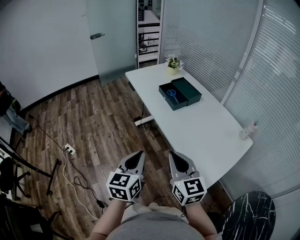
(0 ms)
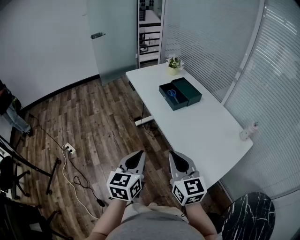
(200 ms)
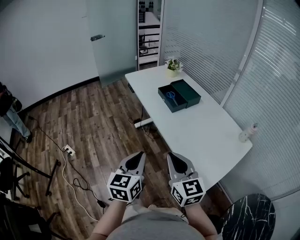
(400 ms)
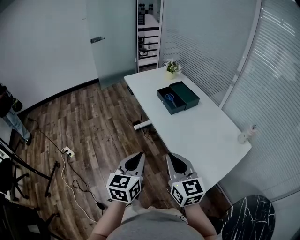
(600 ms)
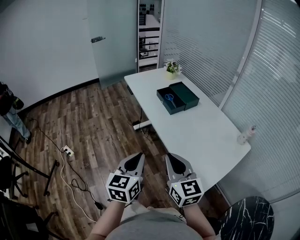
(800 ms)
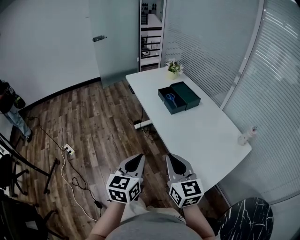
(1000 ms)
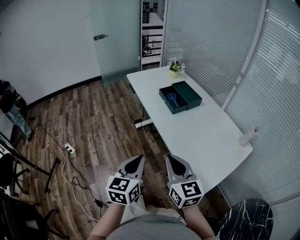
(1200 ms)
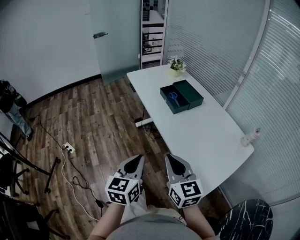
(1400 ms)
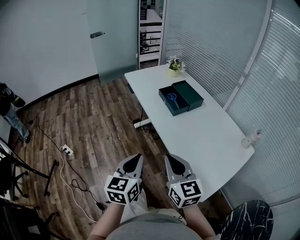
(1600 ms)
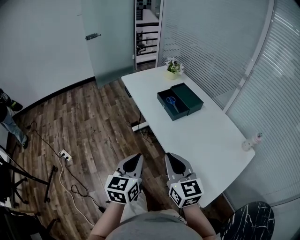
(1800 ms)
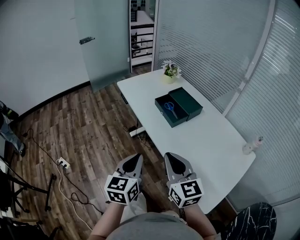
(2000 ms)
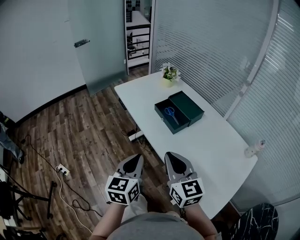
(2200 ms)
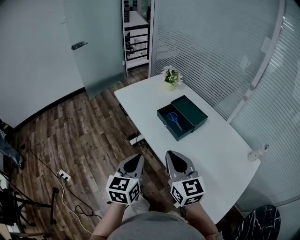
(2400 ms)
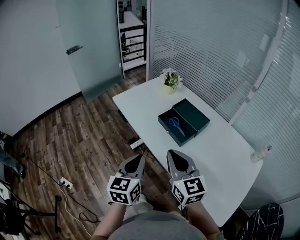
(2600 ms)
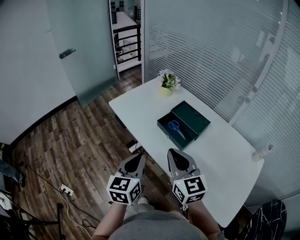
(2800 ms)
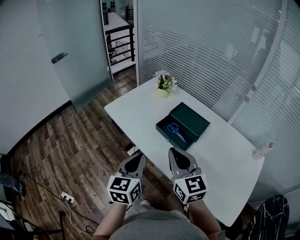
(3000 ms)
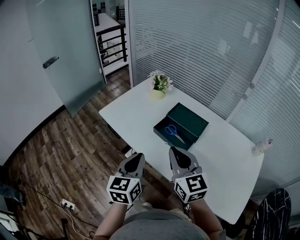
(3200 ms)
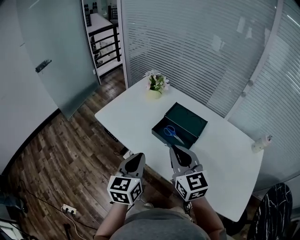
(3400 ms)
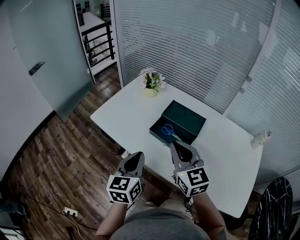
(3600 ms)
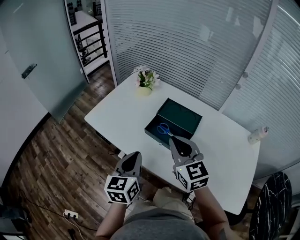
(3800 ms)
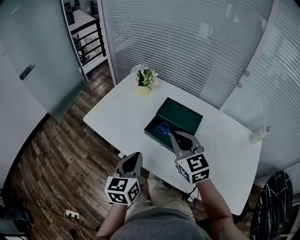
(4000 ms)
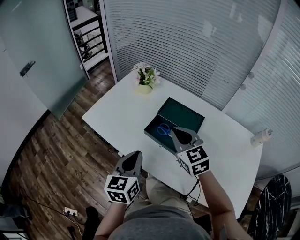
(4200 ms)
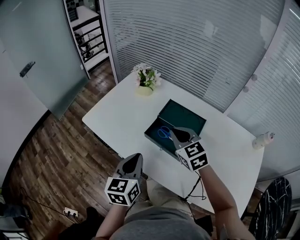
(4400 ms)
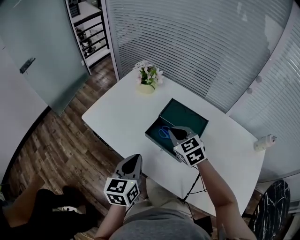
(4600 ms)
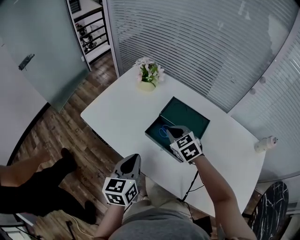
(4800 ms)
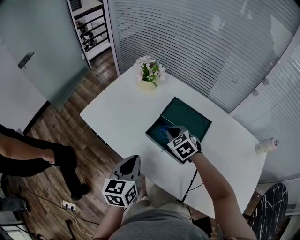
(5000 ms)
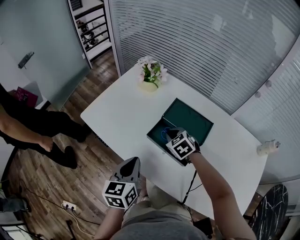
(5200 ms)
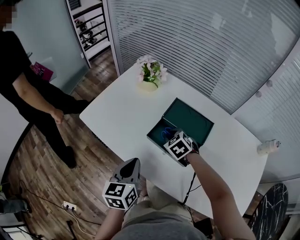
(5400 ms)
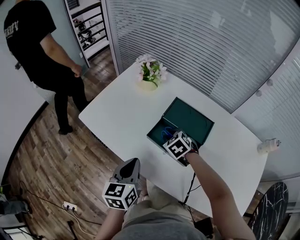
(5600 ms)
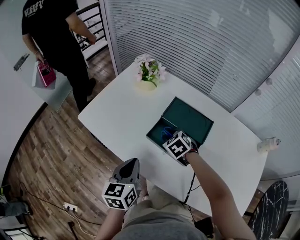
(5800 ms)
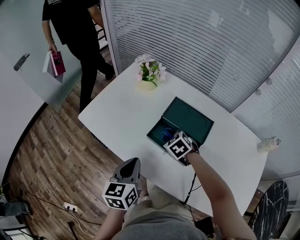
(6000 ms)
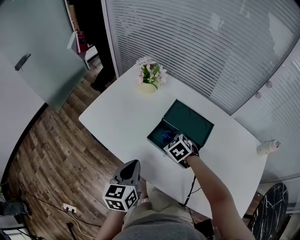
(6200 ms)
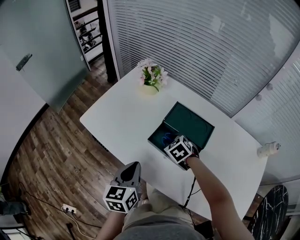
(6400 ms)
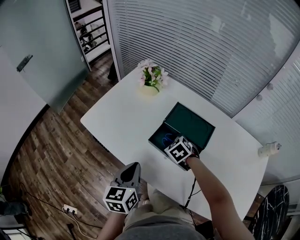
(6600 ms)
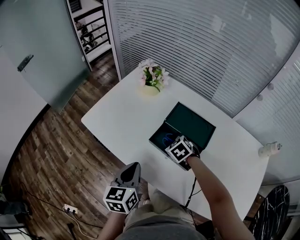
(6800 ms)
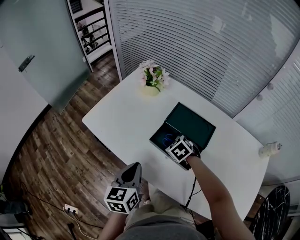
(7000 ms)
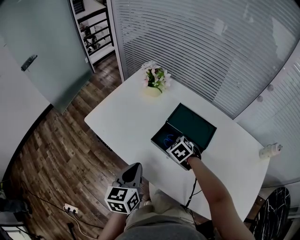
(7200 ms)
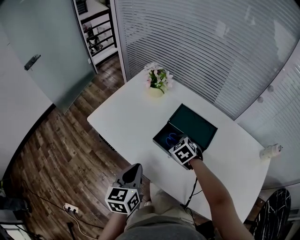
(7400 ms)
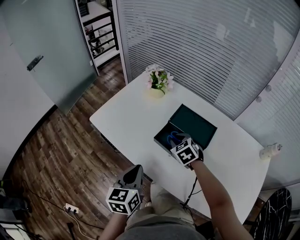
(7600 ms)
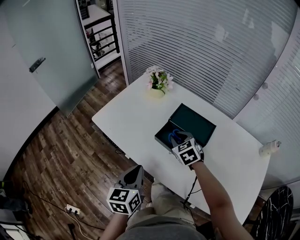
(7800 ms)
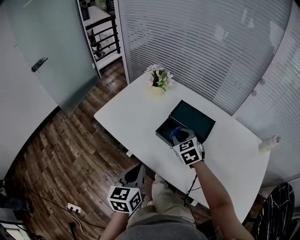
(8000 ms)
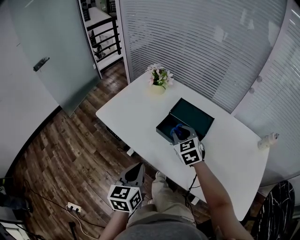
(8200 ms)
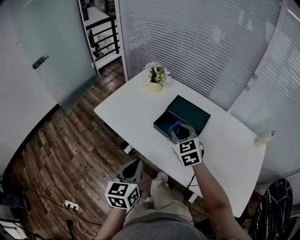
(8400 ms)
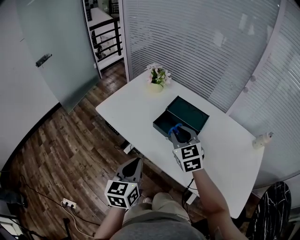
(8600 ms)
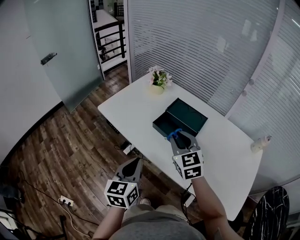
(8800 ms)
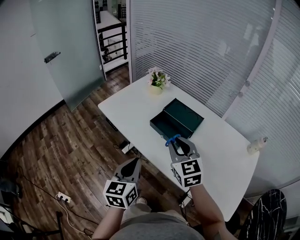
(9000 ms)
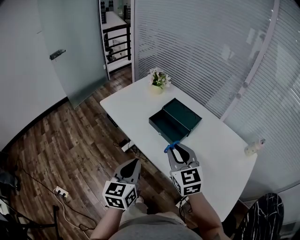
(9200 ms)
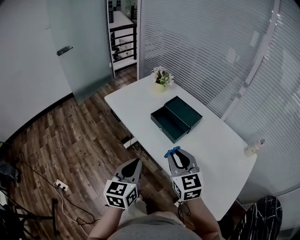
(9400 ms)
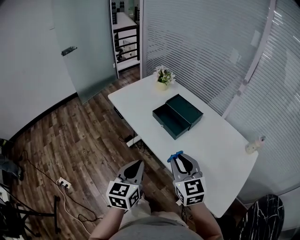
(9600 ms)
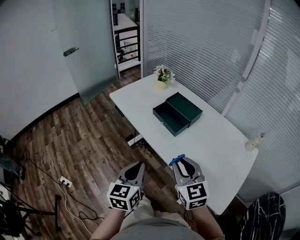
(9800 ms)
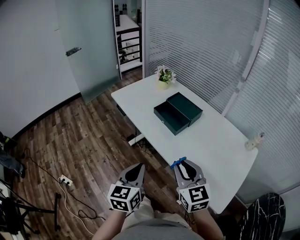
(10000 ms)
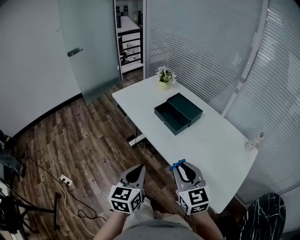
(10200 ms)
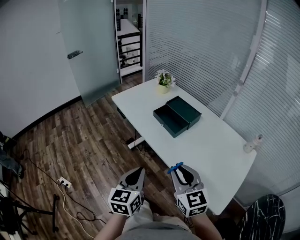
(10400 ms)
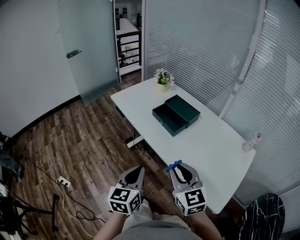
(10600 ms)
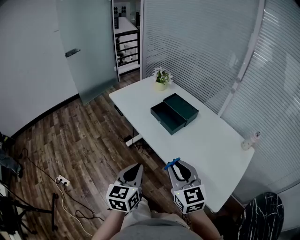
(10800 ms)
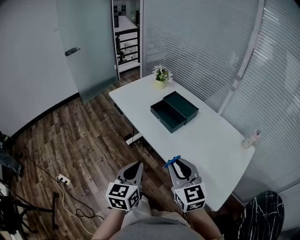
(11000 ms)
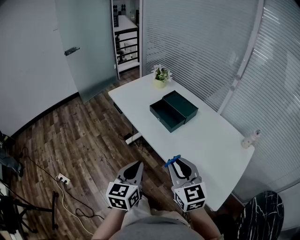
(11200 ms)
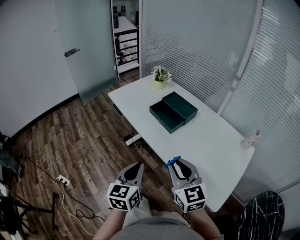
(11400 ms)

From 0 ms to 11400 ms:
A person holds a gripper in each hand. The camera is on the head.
From 0 ms to 1400 ms: The grippers stay close to where they were, moving slightly.
From 1400 ms to 2800 ms: Both grippers travel together forward, approximately 35 cm.
From 2800 ms to 4200 ms: The grippers both shift forward by approximately 20 cm. The right gripper swivels some 20 degrees.
From 4200 ms to 5600 ms: The left gripper moves downward, about 5 cm; the right gripper is displaced downward and forward by about 25 cm, angles its fingers downward, by some 40 degrees, and opens up.
From 5600 ms to 7200 ms: The grippers stay close to where they were, moving slightly.
From 7200 ms to 8600 ms: The left gripper heads backward and upward, covering some 15 cm. The right gripper goes about 25 cm upward and backward, and points its fingers approximately 40 degrees further upward.
From 8600 ms to 10000 ms: The two grippers go roughly 30 cm backward.
From 10000 ms to 11400 ms: The grippers make only small movements.

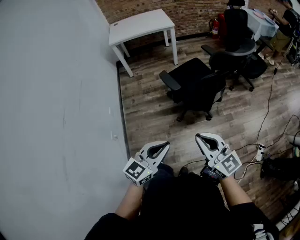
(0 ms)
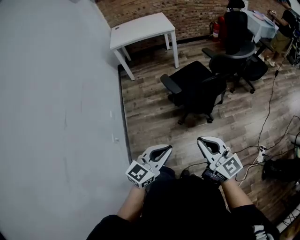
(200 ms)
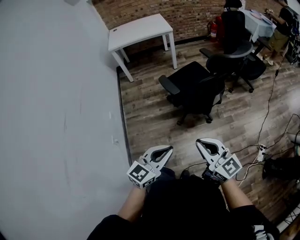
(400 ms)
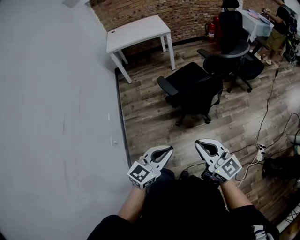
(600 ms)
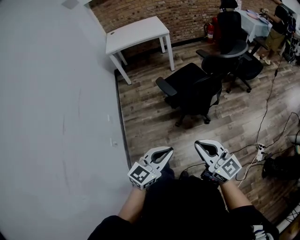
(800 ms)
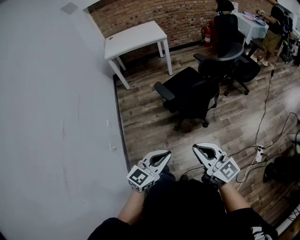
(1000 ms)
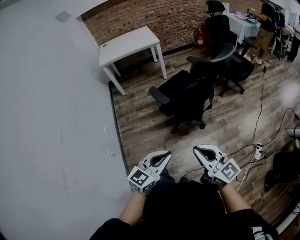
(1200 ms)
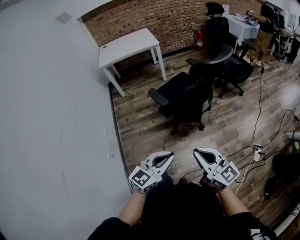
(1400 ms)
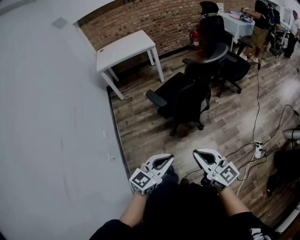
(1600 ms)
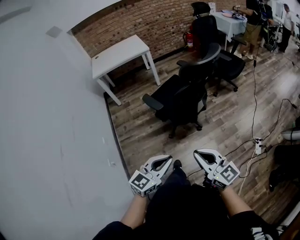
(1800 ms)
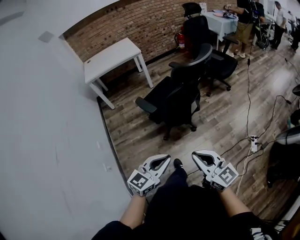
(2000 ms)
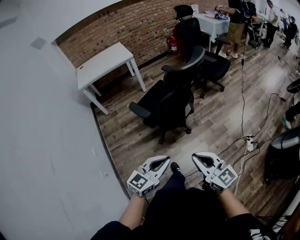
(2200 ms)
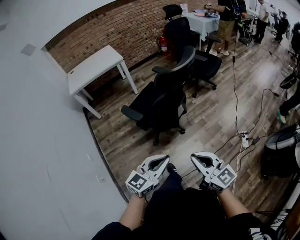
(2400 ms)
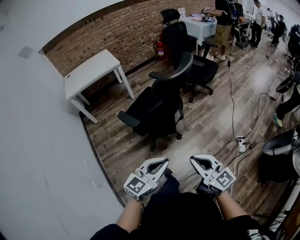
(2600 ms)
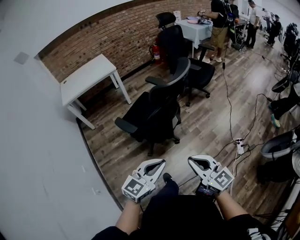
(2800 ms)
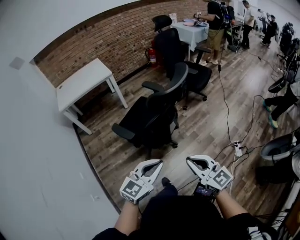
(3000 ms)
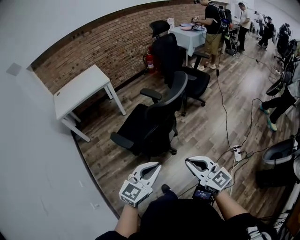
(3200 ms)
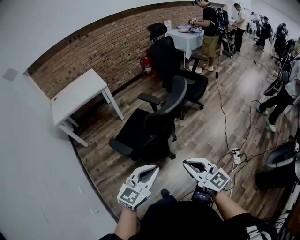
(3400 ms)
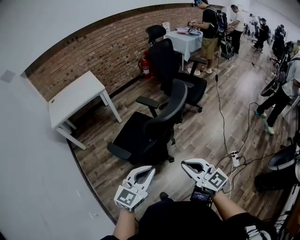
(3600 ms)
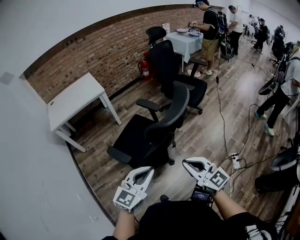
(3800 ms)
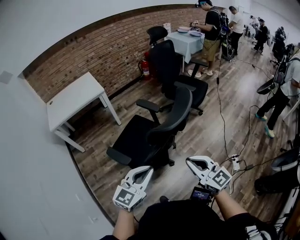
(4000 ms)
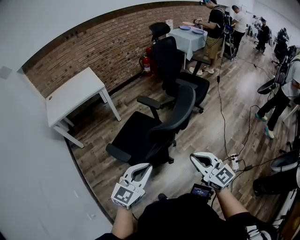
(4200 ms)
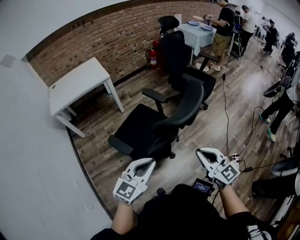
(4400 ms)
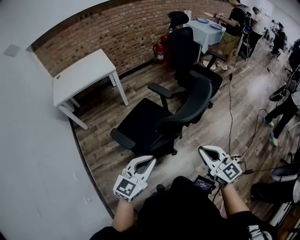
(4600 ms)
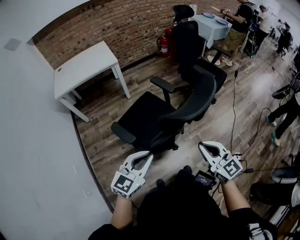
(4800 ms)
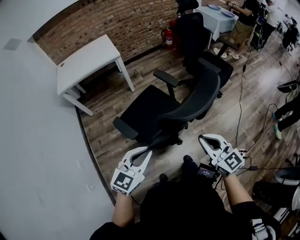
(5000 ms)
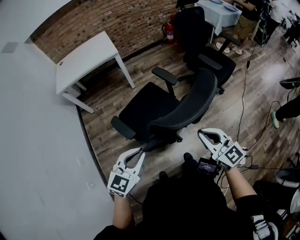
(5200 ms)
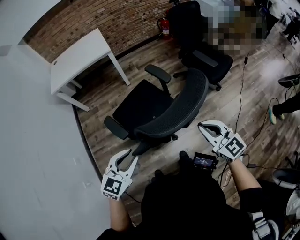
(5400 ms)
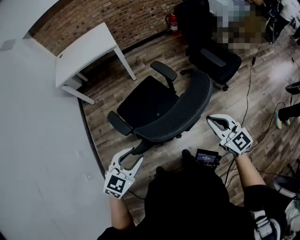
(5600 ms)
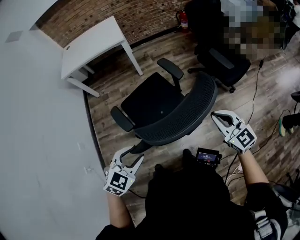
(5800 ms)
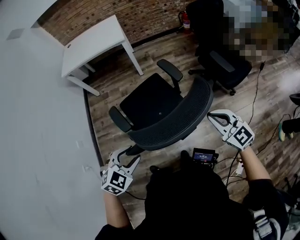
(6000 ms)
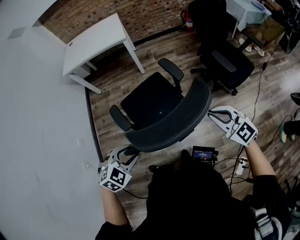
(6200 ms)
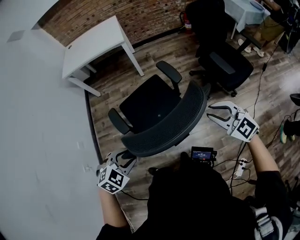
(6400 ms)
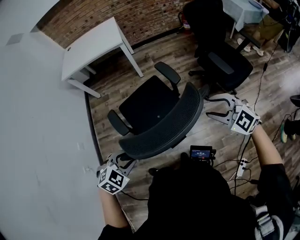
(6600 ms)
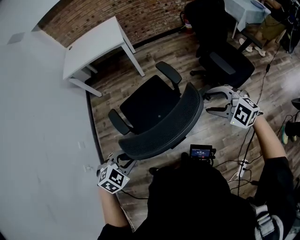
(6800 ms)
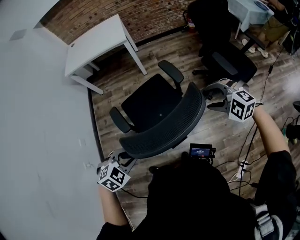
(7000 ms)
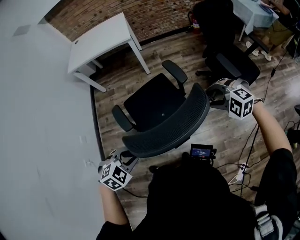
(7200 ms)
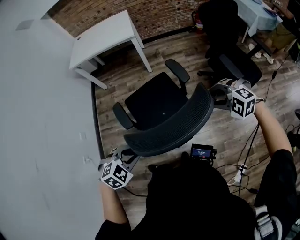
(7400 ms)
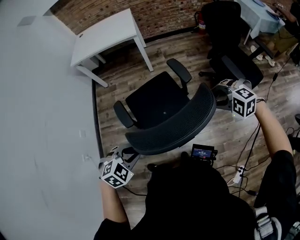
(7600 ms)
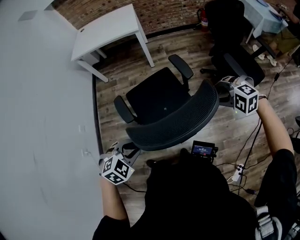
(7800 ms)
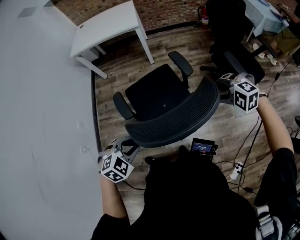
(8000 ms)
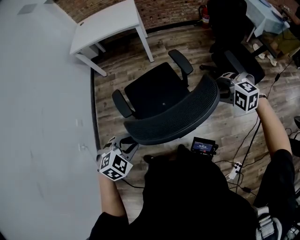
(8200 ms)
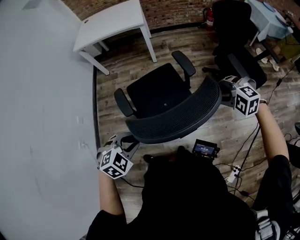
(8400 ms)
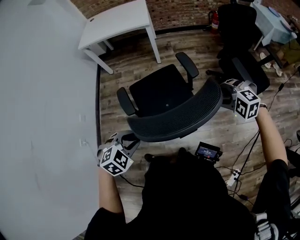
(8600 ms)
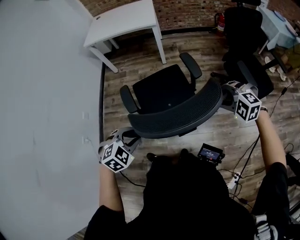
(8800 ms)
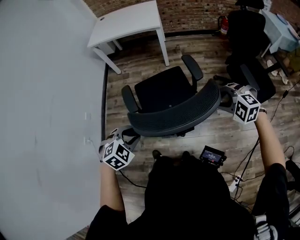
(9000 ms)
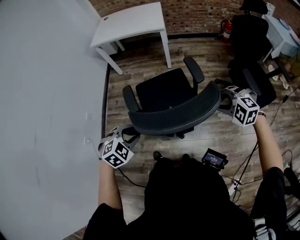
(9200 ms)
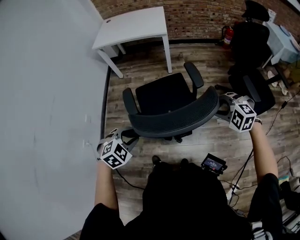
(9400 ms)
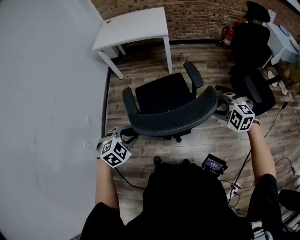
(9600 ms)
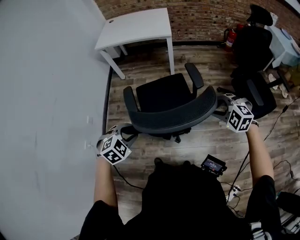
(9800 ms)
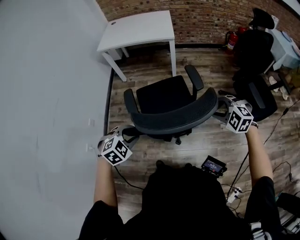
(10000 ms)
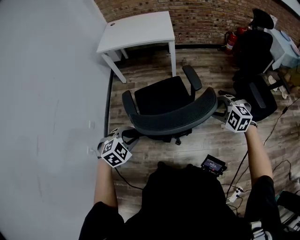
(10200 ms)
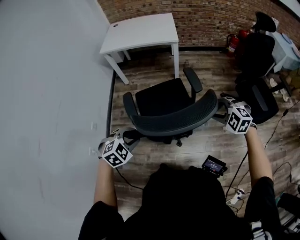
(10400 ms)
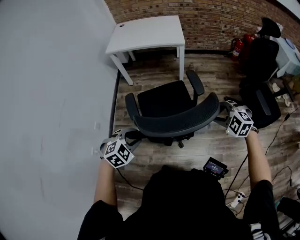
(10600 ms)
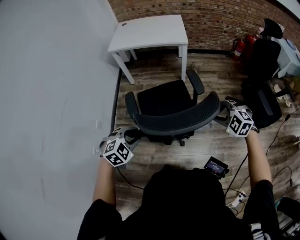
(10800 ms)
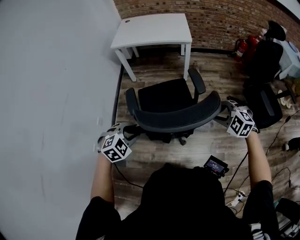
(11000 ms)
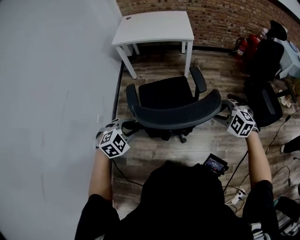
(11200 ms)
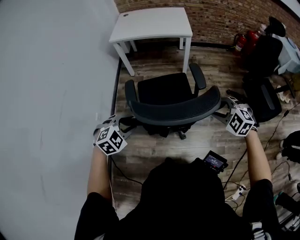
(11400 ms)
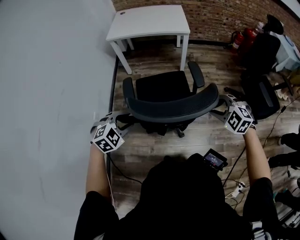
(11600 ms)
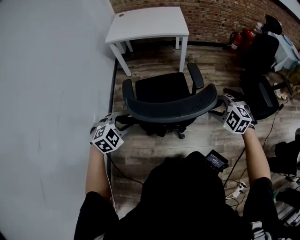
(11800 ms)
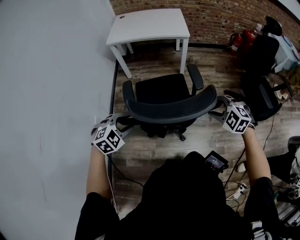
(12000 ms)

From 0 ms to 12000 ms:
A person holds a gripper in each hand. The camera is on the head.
From 0 ms to 1600 ms: The right gripper travels to the right and backward by some 10 cm; the left gripper is displaced to the right by roughly 10 cm.
From 1600 ms to 3000 ms: The left gripper goes some 15 cm forward. Meanwhile the right gripper shifts roughly 15 cm forward and to the right.
From 3000 ms to 4400 ms: The two grippers go about 20 cm forward.
From 4400 ms to 6000 ms: The right gripper ends up some 30 cm from where it was, and swivels some 30 degrees. The left gripper shifts by some 15 cm, tips its fingers downward by roughly 40 degrees, and opens.
From 6000 ms to 7600 ms: The right gripper heads forward, covering about 10 cm, points its fingers some 40 degrees further downward, and opens.
From 7600 ms to 9000 ms: The right gripper is displaced to the left by about 5 cm; the left gripper shifts by about 5 cm.
From 9000 ms to 10400 ms: Both grippers travel together to the left and forward, about 15 cm.
From 10400 ms to 12000 ms: The grippers both shift to the left by about 15 cm.
